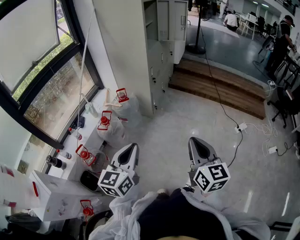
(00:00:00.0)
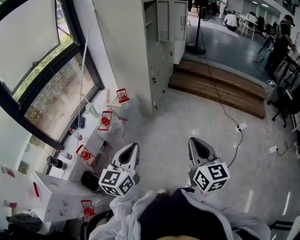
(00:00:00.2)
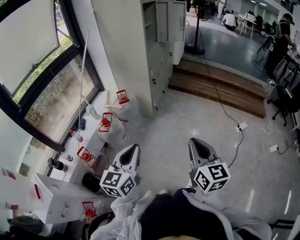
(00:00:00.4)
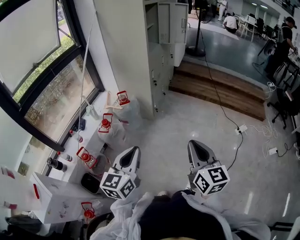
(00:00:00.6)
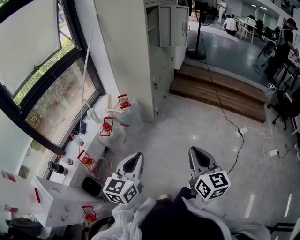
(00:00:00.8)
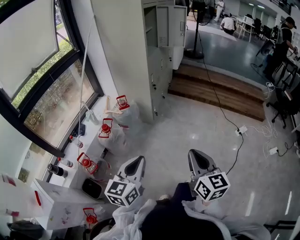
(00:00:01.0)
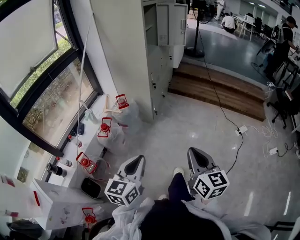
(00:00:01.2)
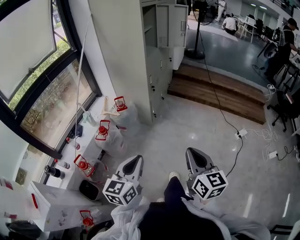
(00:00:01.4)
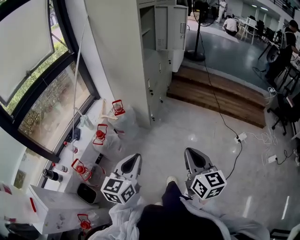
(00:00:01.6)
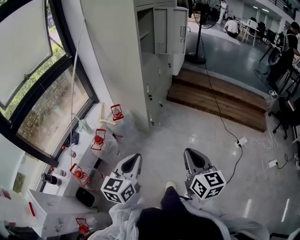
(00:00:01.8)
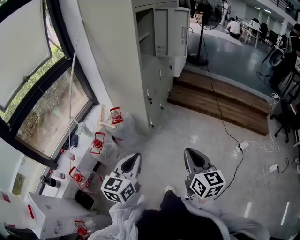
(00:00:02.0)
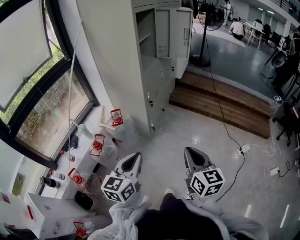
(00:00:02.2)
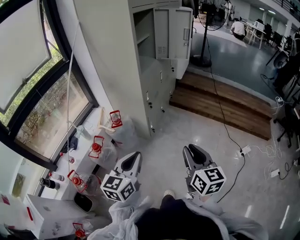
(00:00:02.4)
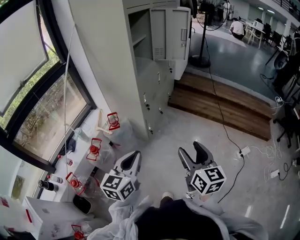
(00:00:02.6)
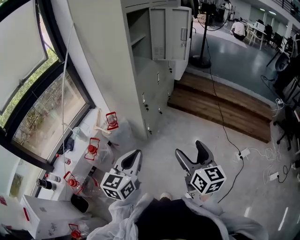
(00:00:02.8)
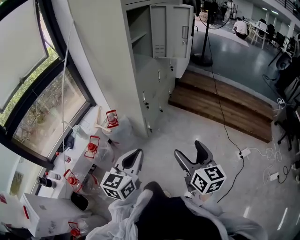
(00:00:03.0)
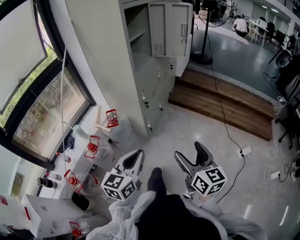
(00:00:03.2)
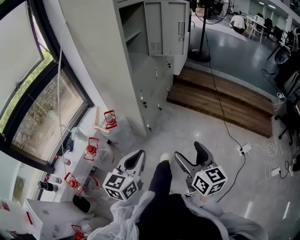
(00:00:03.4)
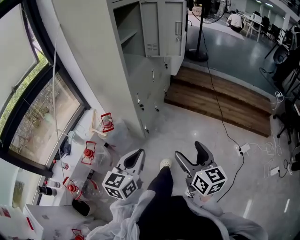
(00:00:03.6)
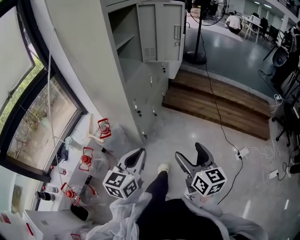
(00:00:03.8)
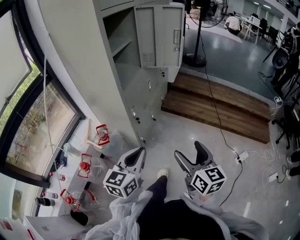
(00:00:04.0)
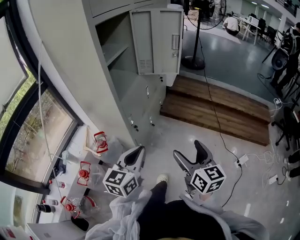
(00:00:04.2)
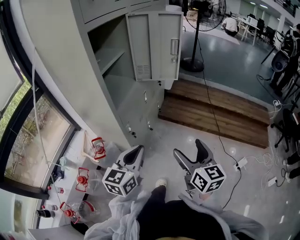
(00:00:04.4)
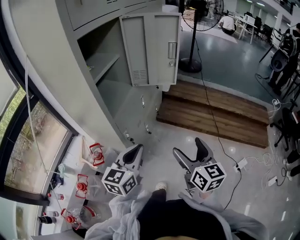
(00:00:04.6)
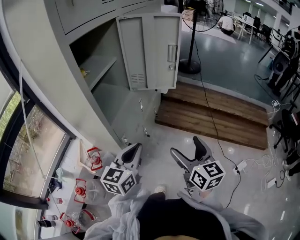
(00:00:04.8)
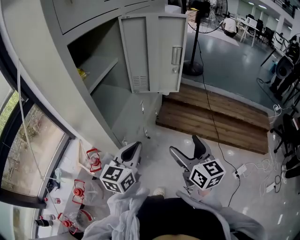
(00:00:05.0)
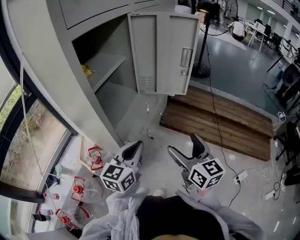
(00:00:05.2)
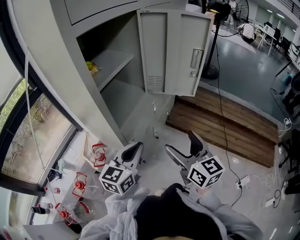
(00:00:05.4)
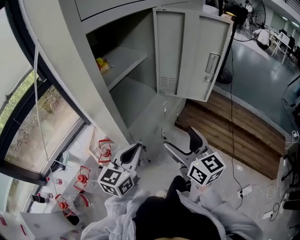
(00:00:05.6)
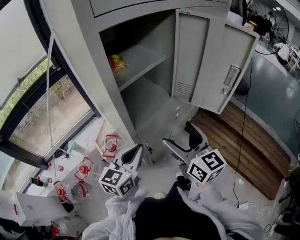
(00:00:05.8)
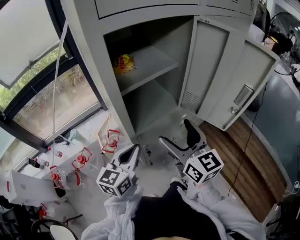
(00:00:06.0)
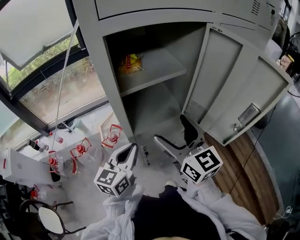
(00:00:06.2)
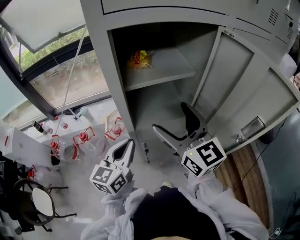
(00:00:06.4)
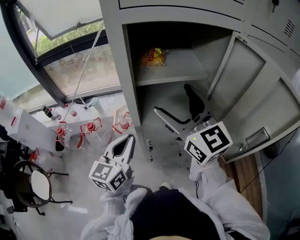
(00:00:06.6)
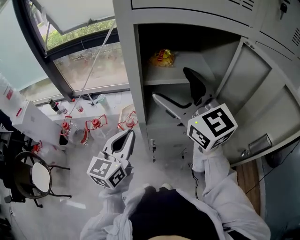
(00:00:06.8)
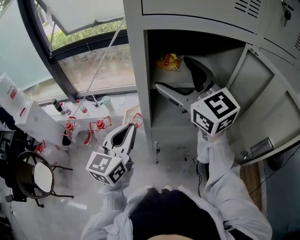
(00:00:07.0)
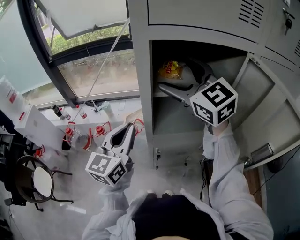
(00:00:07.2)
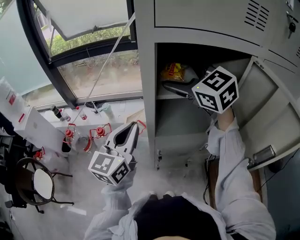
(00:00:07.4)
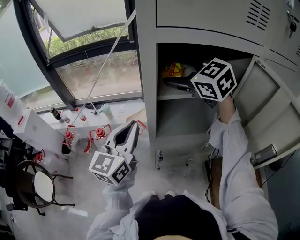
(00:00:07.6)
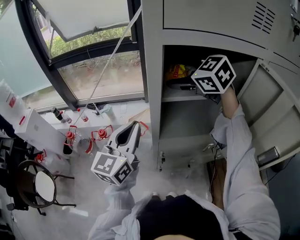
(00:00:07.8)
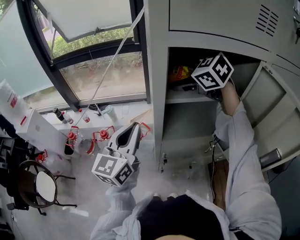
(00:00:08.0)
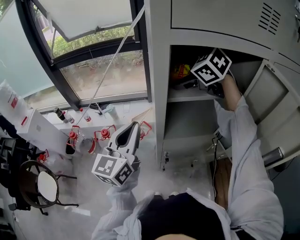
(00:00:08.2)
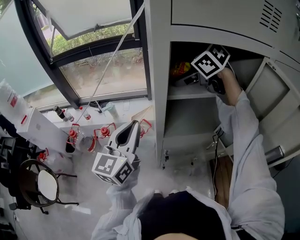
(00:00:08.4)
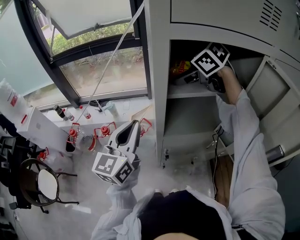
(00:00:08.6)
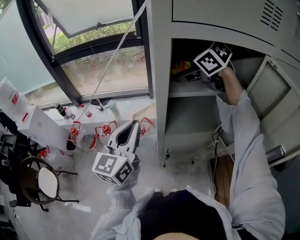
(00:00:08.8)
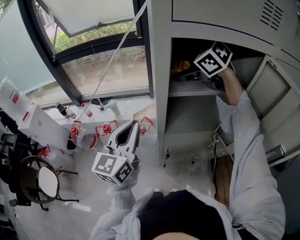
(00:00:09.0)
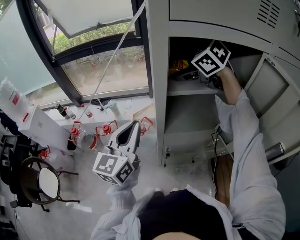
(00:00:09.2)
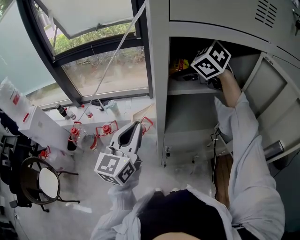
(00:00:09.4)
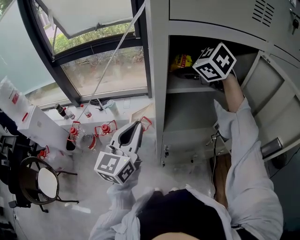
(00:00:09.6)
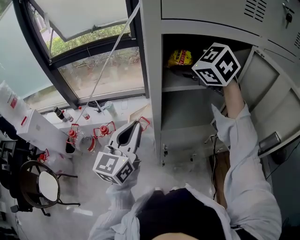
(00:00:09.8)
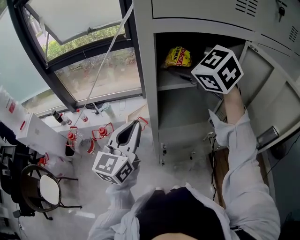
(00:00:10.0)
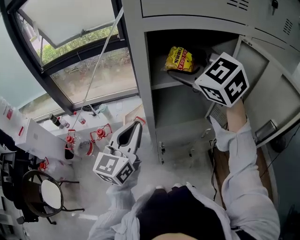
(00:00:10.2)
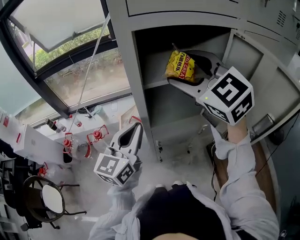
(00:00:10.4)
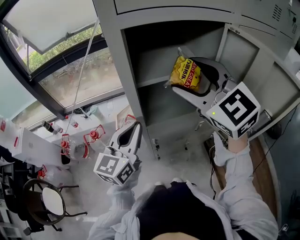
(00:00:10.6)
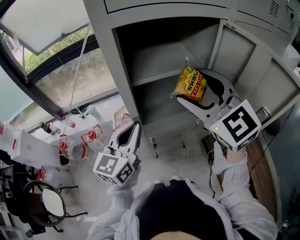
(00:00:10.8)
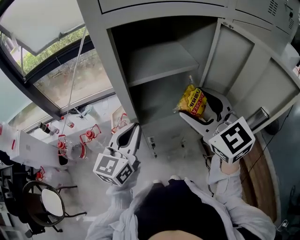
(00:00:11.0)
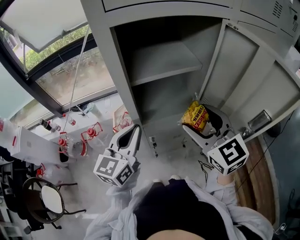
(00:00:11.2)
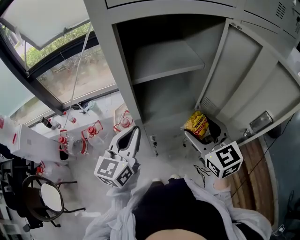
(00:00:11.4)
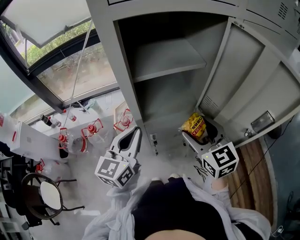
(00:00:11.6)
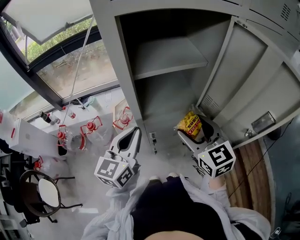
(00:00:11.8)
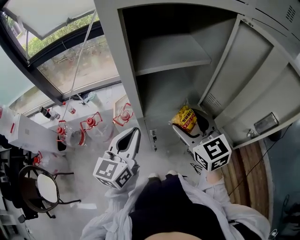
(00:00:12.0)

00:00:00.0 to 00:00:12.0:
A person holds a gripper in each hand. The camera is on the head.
00:00:00.0 to 00:00:01.6: Both grippers travel together forward, approximately 10 cm.
00:00:01.6 to 00:00:03.0: The right gripper is displaced forward by about 20 cm, and opens up, while the left gripper goes approximately 20 cm forward and to the right.
00:00:03.0 to 00:00:04.4: Both grippers move forward, some 25 cm.
00:00:04.4 to 00:00:06.0: The right gripper ends up some 30 cm from where it was, and rotates roughly 40 degrees. Meanwhile the left gripper changes place by roughly 20 cm, and rotates roughly 30 degrees.
00:00:06.0 to 00:00:07.6: The right gripper changes place by about 30 cm, and swivels roughly 60 degrees, while the left gripper moves upward, about 15 cm, and rotates approximately 30 degrees.
00:00:07.6 to 00:00:09.0: The right gripper heads downward, covering some 5 cm, and rotates approximately 30 degrees.
00:00:09.0 to 00:00:10.4: The left gripper goes about 5 cm to the right. Meanwhile the right gripper goes roughly 15 cm backward and upward, and turns by about 40 degrees.
00:00:10.4 to 00:00:12.0: The left gripper heads downward, covering some 5 cm, while the right gripper travels downward by some 20 cm, and changes its angle by roughly 30 degrees.

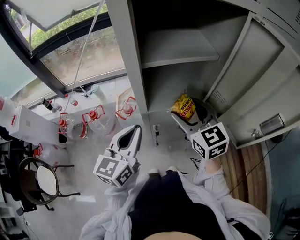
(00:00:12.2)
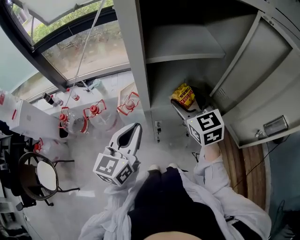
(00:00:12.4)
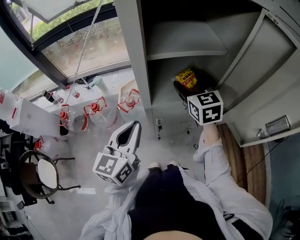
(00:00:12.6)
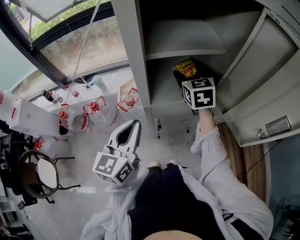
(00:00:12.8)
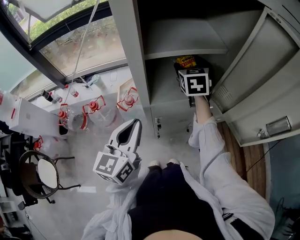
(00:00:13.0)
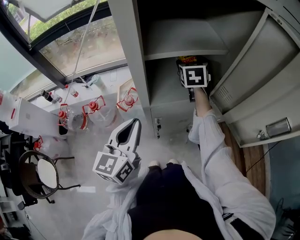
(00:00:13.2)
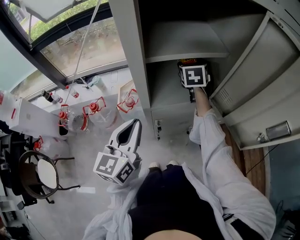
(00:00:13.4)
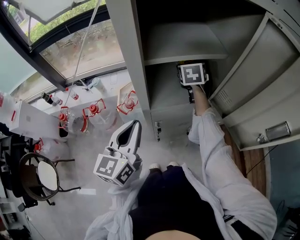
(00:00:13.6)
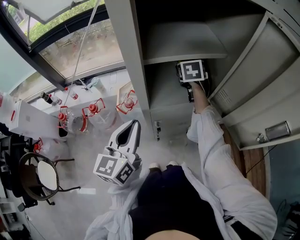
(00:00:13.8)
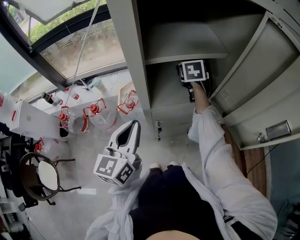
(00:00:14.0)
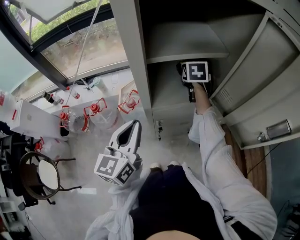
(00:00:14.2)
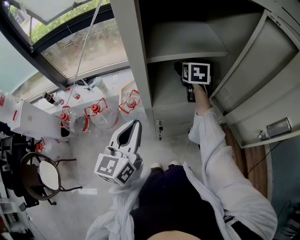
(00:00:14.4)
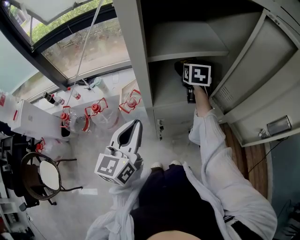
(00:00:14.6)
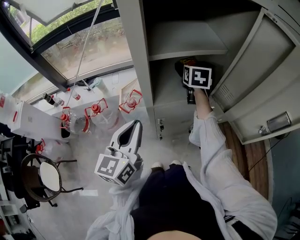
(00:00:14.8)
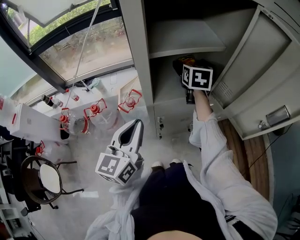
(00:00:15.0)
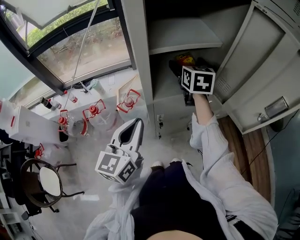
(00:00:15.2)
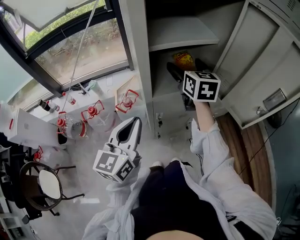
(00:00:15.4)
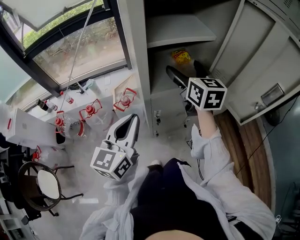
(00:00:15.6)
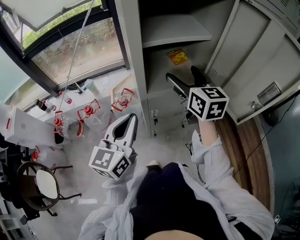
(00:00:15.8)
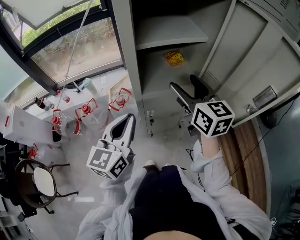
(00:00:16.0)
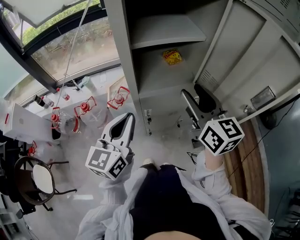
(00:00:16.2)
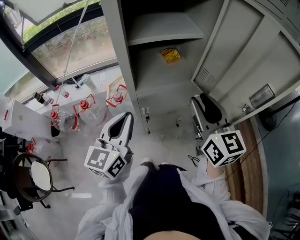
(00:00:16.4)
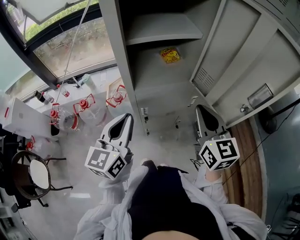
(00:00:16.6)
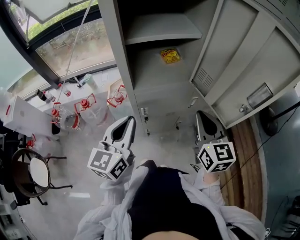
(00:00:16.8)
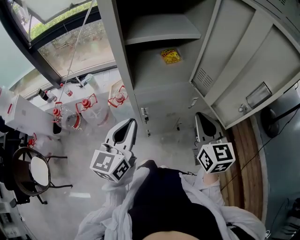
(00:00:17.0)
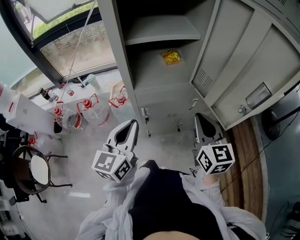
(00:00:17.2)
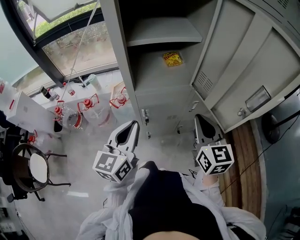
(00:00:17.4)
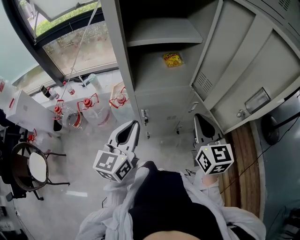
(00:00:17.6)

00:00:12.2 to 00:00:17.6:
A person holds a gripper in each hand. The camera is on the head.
00:00:12.2 to 00:00:13.6: The right gripper moves forward, roughly 20 cm, and swivels about 30 degrees.
00:00:13.6 to 00:00:15.0: The right gripper shifts by some 5 cm.
00:00:15.0 to 00:00:16.2: The right gripper goes roughly 25 cm backward, turns by roughly 30 degrees, and closes up.
00:00:16.2 to 00:00:17.6: The right gripper travels downward and to the right by roughly 10 cm, and closes up. The left gripper ends up about 5 cm from where it was.

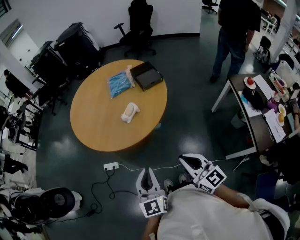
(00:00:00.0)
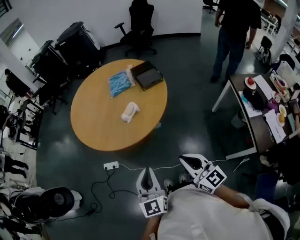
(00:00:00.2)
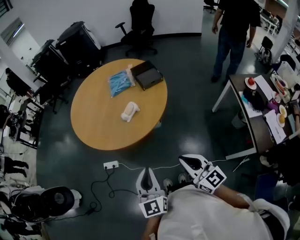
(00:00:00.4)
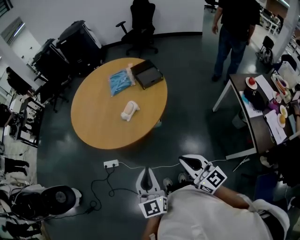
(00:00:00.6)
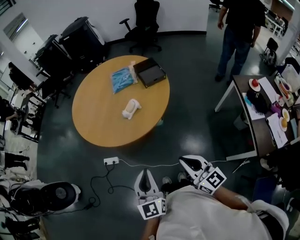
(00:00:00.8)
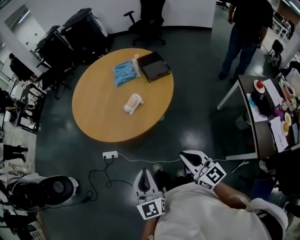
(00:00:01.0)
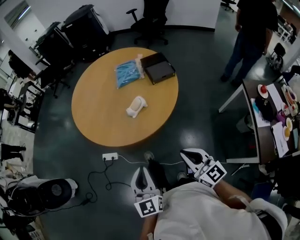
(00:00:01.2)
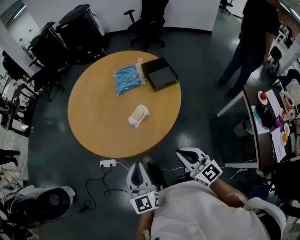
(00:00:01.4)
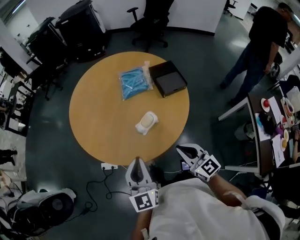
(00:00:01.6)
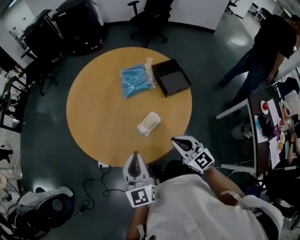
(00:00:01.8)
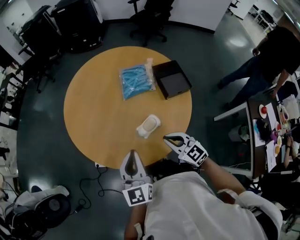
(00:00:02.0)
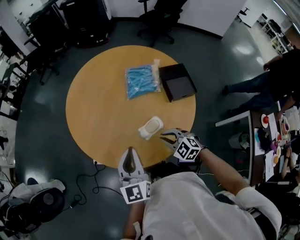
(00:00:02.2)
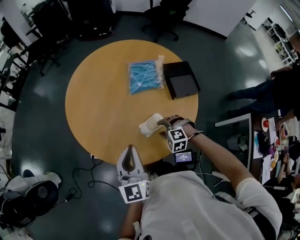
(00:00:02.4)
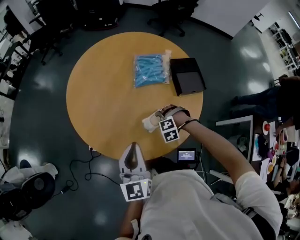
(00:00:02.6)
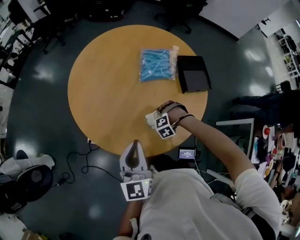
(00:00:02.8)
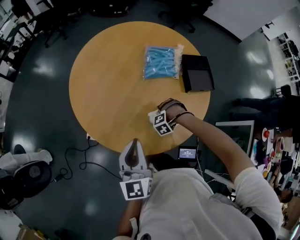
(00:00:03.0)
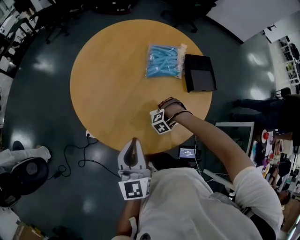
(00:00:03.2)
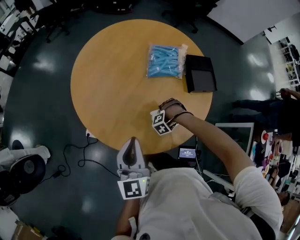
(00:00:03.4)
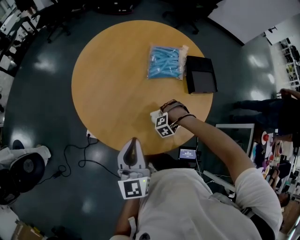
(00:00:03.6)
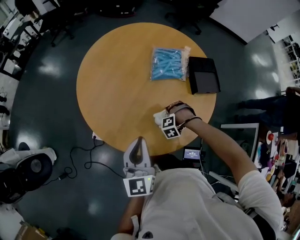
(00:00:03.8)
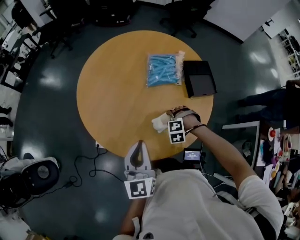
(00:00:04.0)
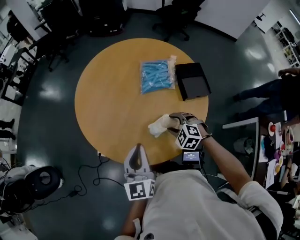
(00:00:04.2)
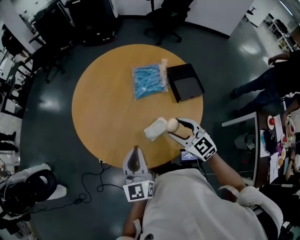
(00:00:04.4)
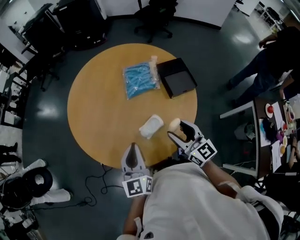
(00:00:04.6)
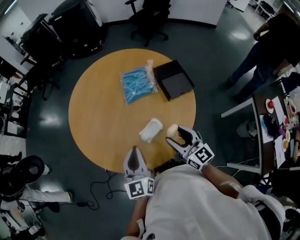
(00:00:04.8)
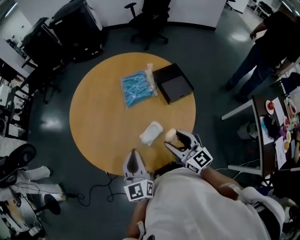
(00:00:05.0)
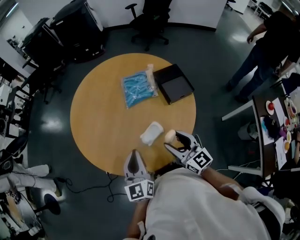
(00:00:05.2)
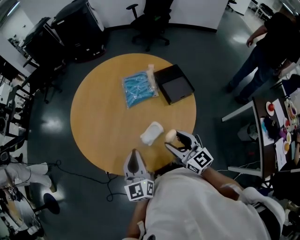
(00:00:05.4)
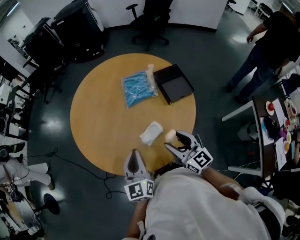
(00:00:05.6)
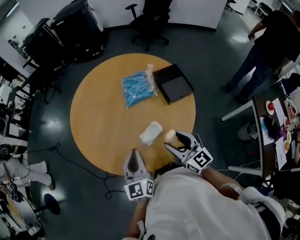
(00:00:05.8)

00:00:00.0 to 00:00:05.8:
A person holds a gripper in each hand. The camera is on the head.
00:00:00.0 to 00:00:01.4: Both grippers travel together forward, about 15 cm.
00:00:01.4 to 00:00:02.8: The left gripper shifts by some 25 cm. Meanwhile the right gripper moves roughly 40 cm, points its fingers about 70 degrees further downward, and opens.
00:00:02.8 to 00:00:04.4: The right gripper heads upward, covering some 25 cm, and points its fingers roughly 60 degrees further upward.
00:00:04.4 to 00:00:05.8: The right gripper shifts about 5 cm backward, and swivels roughly 30 degrees.
